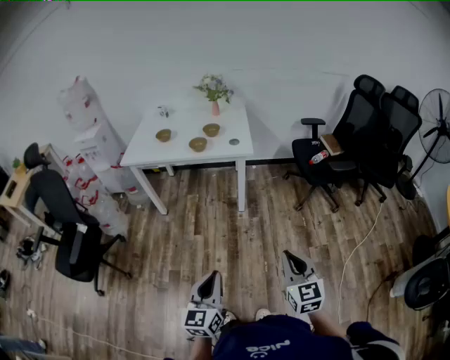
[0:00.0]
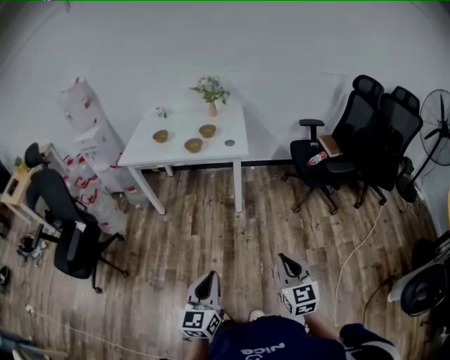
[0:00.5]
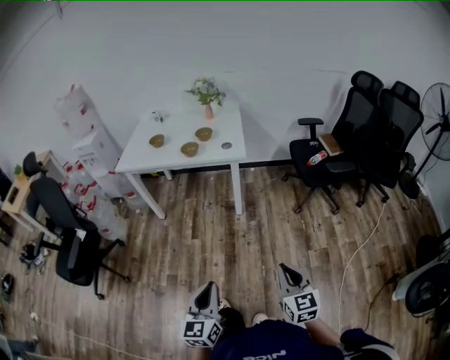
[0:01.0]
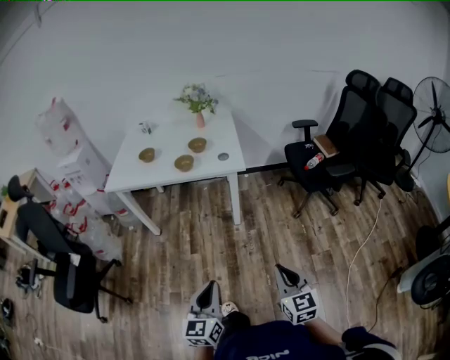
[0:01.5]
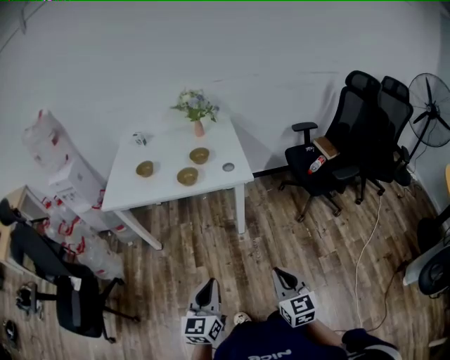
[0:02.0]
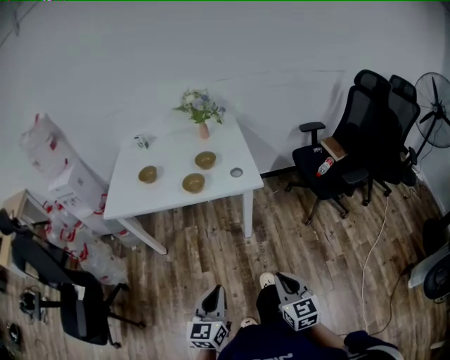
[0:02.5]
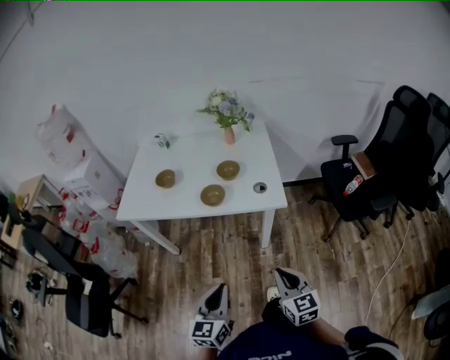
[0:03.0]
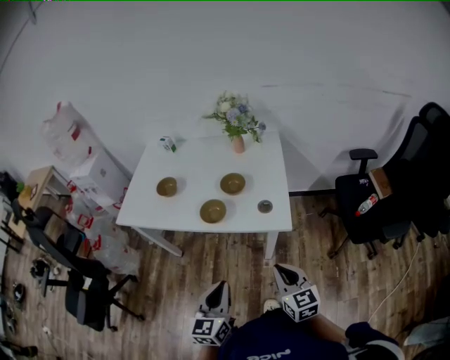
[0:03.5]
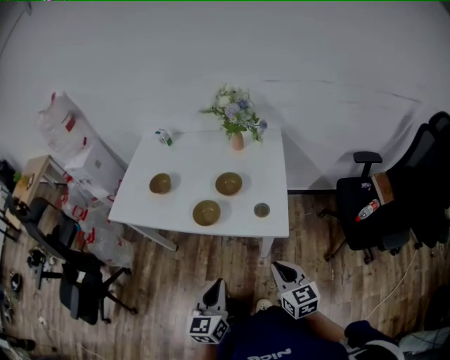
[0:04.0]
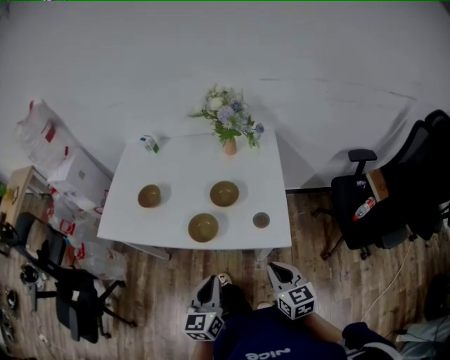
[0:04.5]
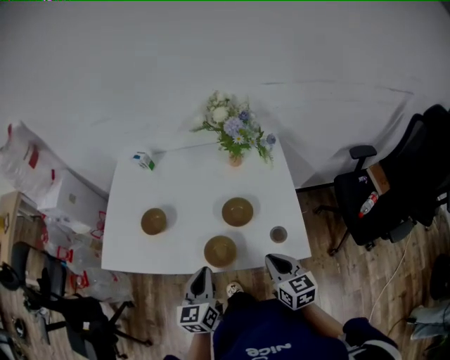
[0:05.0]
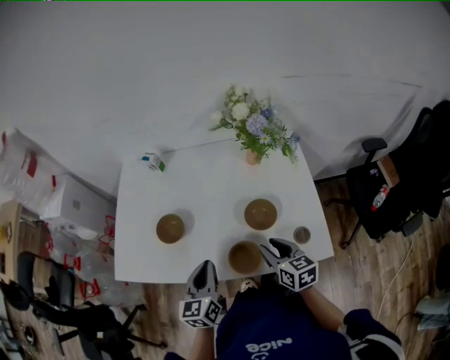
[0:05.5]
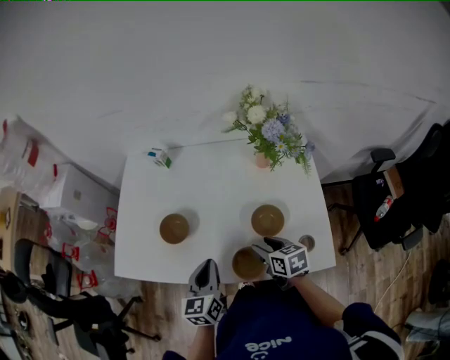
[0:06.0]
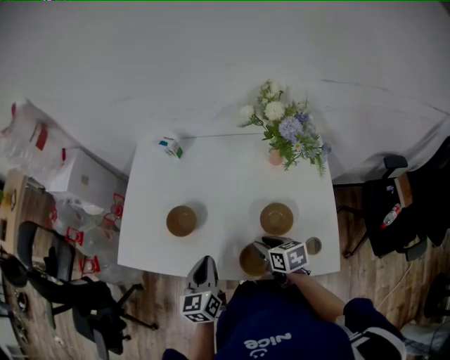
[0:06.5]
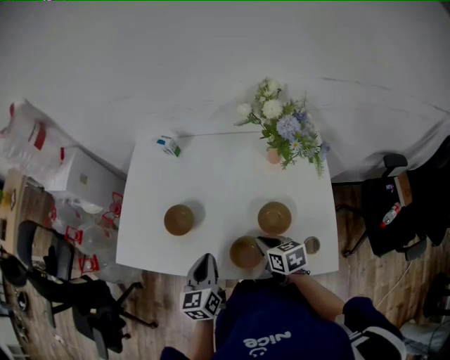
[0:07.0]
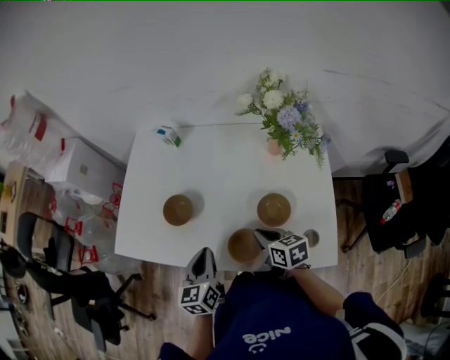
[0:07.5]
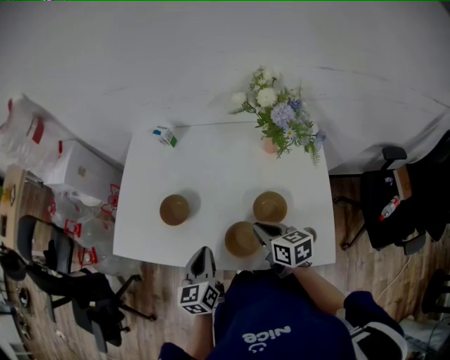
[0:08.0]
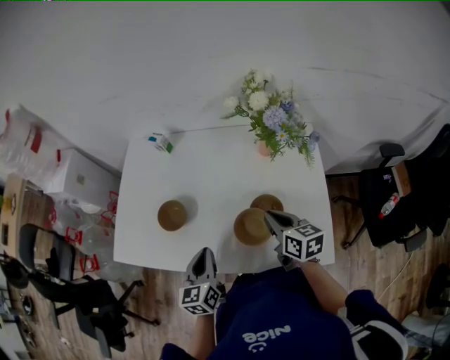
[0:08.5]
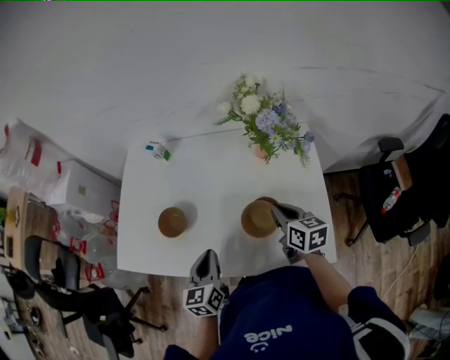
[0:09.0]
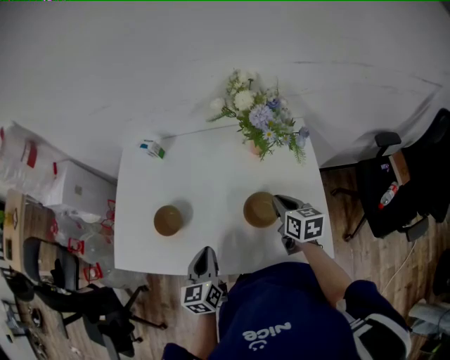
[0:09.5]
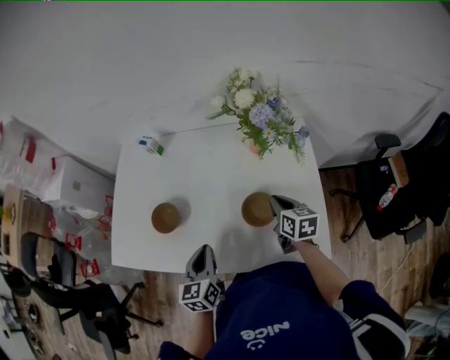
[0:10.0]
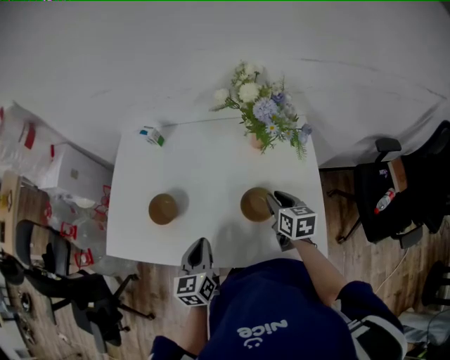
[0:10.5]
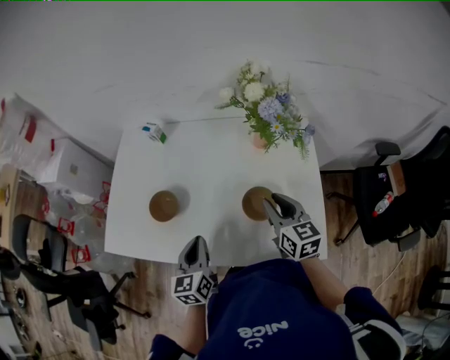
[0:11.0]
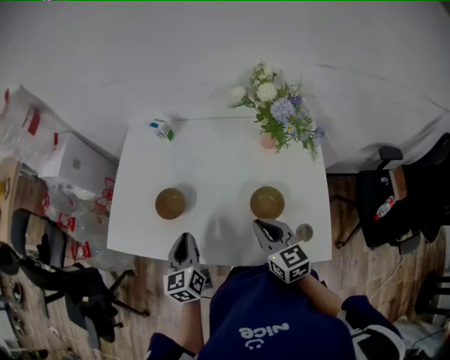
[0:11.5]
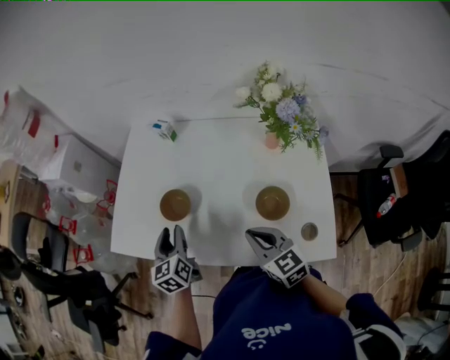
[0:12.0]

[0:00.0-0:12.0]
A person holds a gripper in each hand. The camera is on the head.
0:00.0 to 0:02.0: The left gripper travels forward by approximately 20 cm. The right gripper heads forward and to the left, covering roughly 20 cm.
0:02.0 to 0:04.0: The grippers both shift forward by roughly 30 cm. The right gripper changes its angle by approximately 20 degrees.
0:04.0 to 0:06.0: The grippers both shift forward and to the left by roughly 35 cm. The right gripper swivels approximately 30 degrees, and opens its fingers.
0:06.0 to 0:08.0: The right gripper closes up.
0:08.0 to 0:10.0: The right gripper is displaced to the right and forward by roughly 15 cm.
0:10.0 to 0:12.0: The left gripper is displaced to the left and forward by some 15 cm, and opens its fingers; the right gripper moves to the left and backward, approximately 20 cm, rotates roughly 40 degrees, and opens, then closes again.

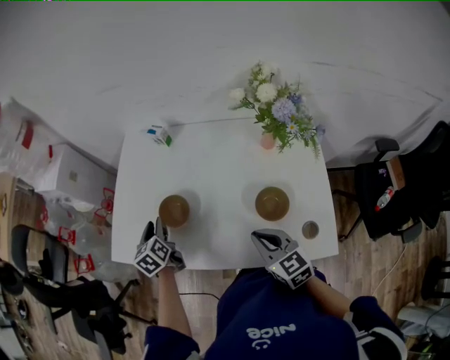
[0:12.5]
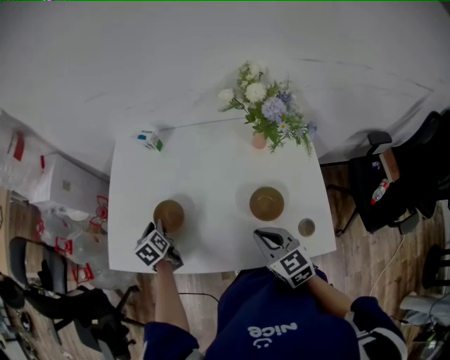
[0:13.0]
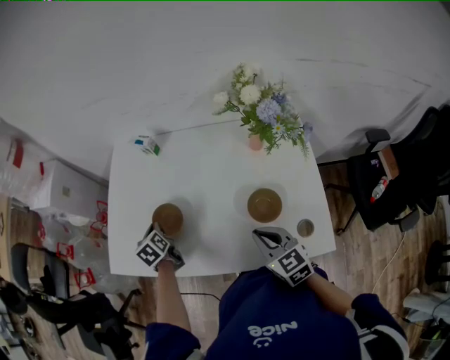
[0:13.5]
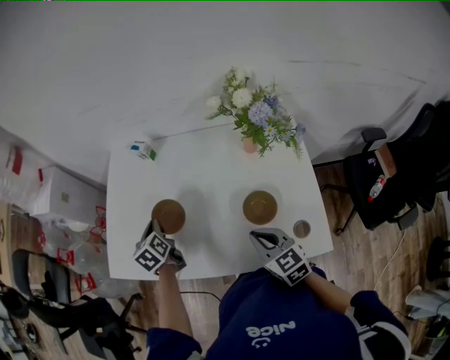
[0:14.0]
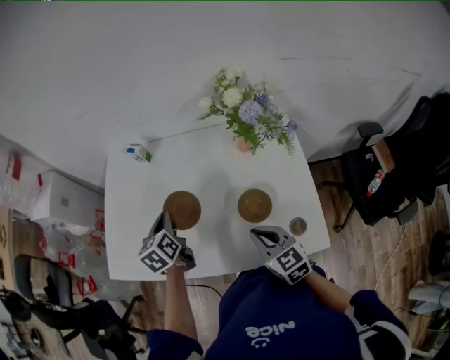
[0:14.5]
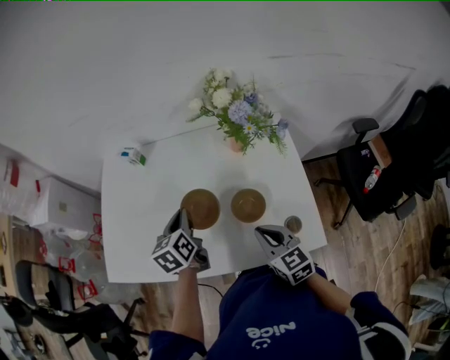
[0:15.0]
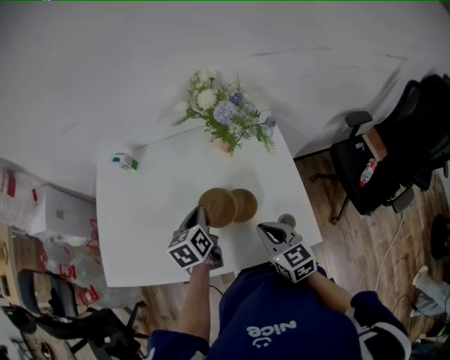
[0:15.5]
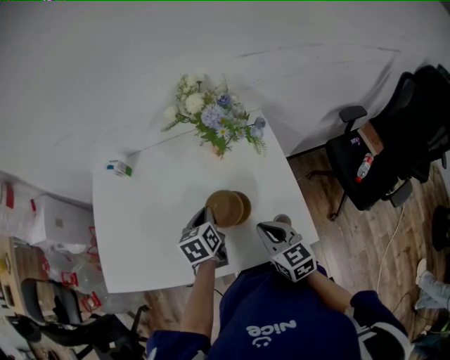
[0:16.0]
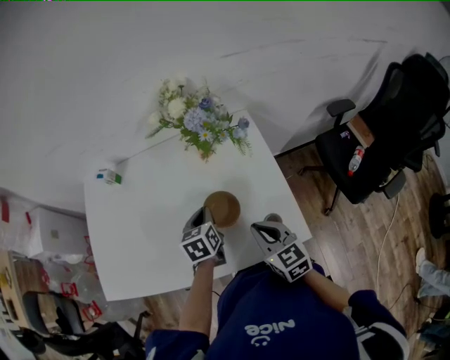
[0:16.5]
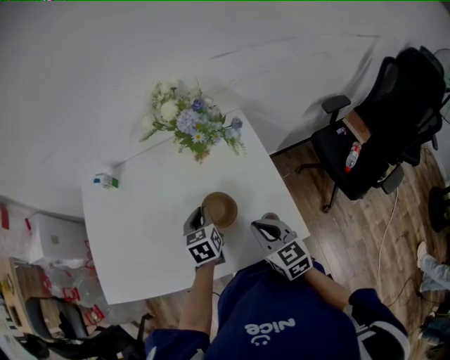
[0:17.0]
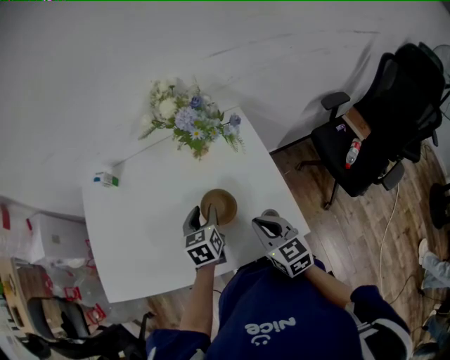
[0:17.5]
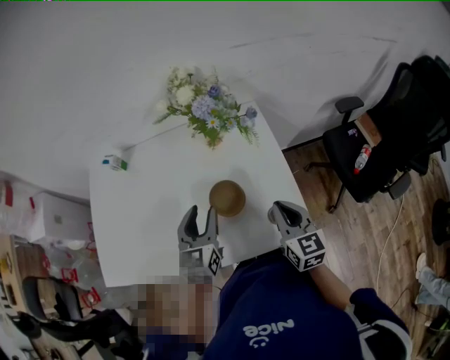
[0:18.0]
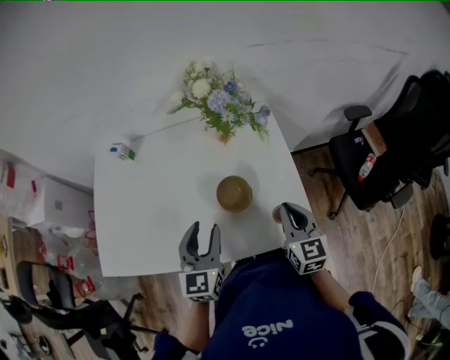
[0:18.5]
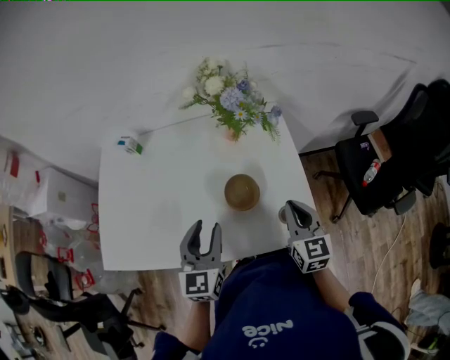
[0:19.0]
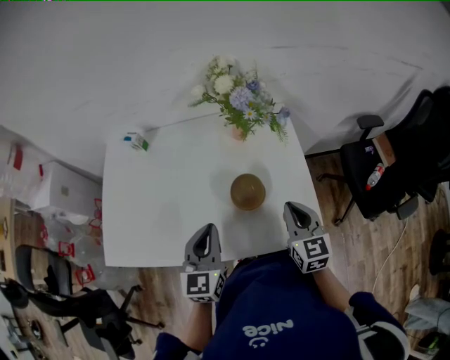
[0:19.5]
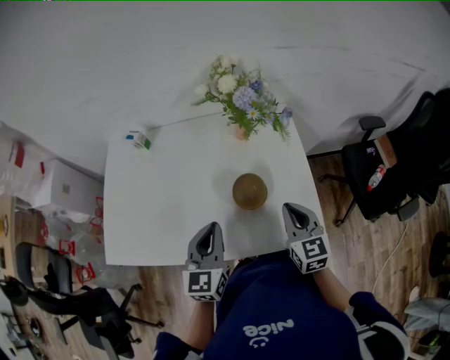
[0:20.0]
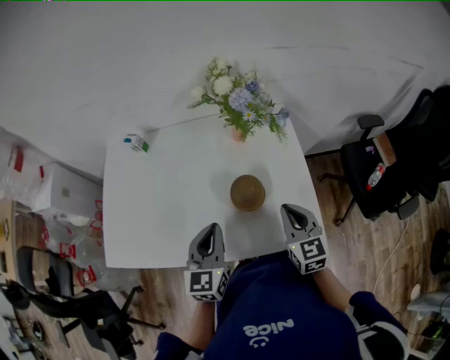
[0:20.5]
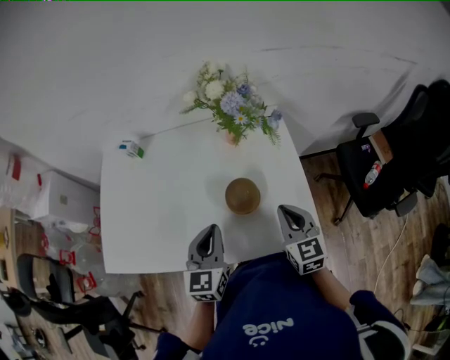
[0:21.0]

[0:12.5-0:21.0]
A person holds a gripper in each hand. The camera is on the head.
0:12.5 to 0:14.5: The left gripper goes some 15 cm to the right and upward, and closes up.
0:14.5 to 0:16.5: The right gripper heads to the right, covering some 10 cm; the left gripper heads to the right, covering roughly 25 cm, and swivels about 20 degrees.
0:16.5 to 0:19.0: The right gripper heads to the right, covering some 5 cm. The left gripper shifts about 15 cm backward, upward and to the left, changes its angle by roughly 30 degrees, and opens up.
0:19.0 to 0:21.0: The left gripper closes its fingers.

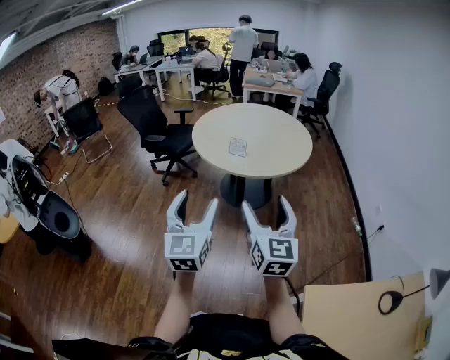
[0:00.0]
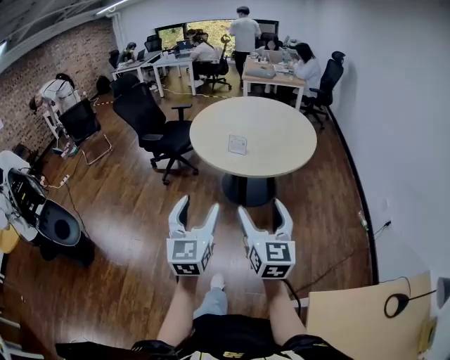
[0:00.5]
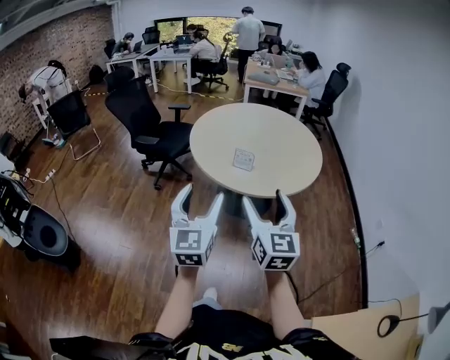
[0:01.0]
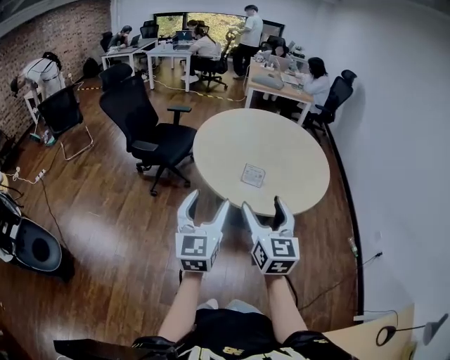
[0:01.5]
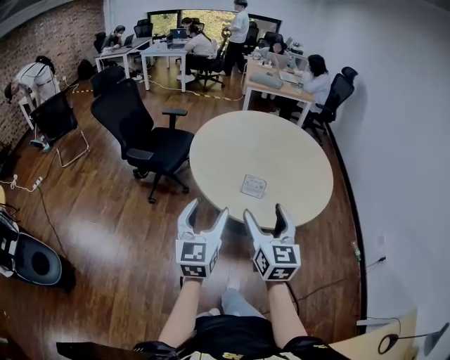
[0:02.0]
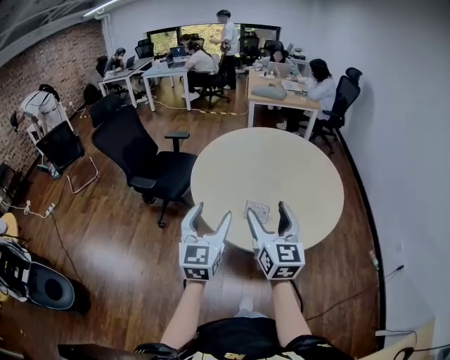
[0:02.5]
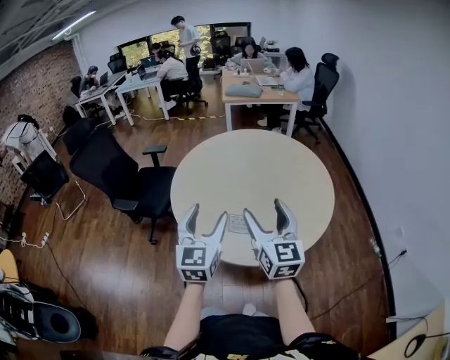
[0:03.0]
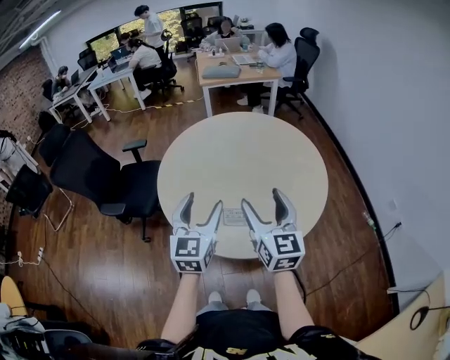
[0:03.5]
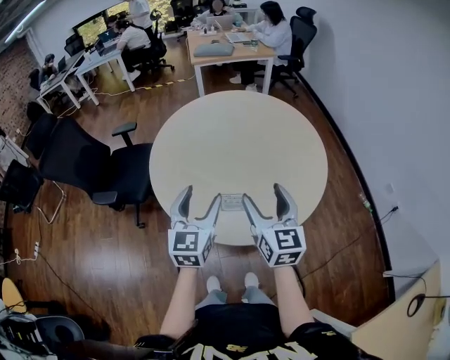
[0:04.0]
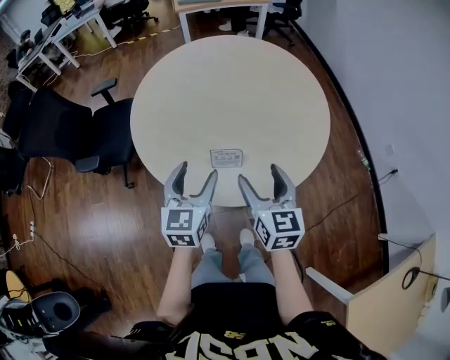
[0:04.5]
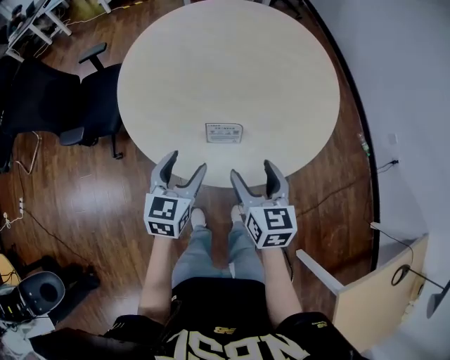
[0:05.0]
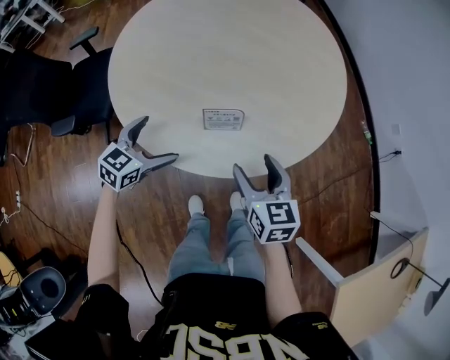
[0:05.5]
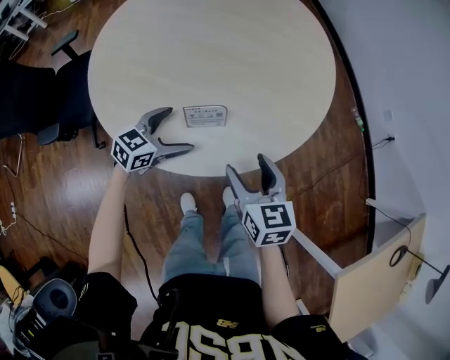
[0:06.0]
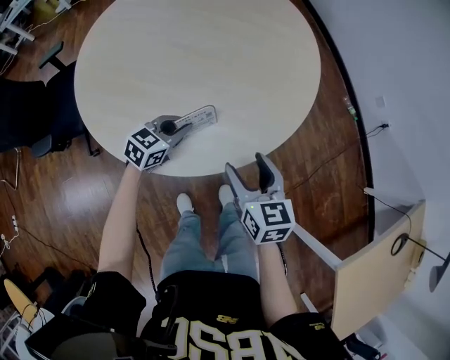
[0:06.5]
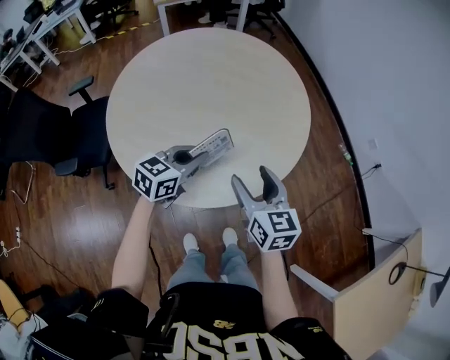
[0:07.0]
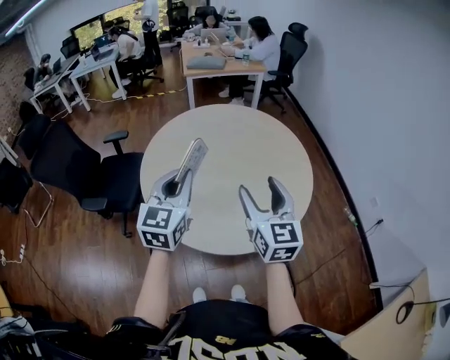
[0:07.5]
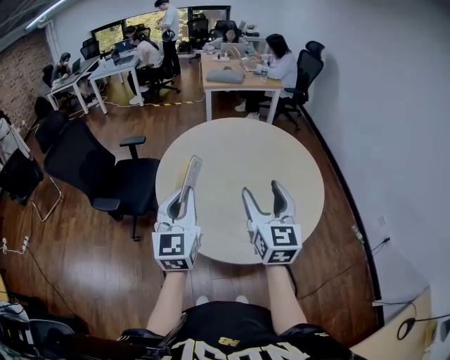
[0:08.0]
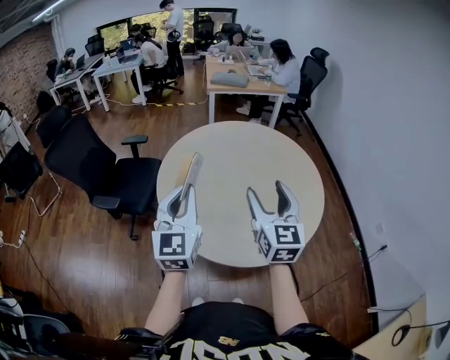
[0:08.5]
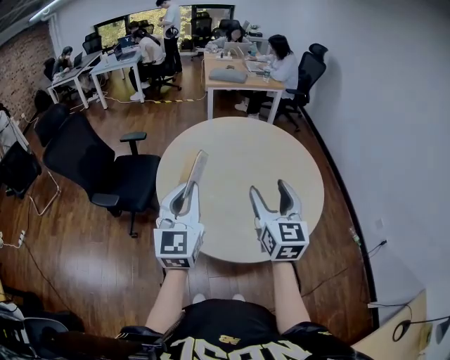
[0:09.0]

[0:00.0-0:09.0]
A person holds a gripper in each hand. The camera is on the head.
0:00.0 to 0:02.0: The pair of grippers is taken forward, approximately 40 cm.
0:02.0 to 0:04.5: The right gripper travels forward, downward and to the right by some 25 cm; the left gripper moves forward and downward, some 30 cm, and changes its angle by roughly 20 degrees.
0:04.5 to 0:07.0: The right gripper reaches some 15 cm downward, then returns, while the left gripper moves roughly 20 cm downward and comes back, swivels roughly 40 degrees, and closes up.
0:07.0 to 0:09.0: The two grippers go roughly 20 cm upward. The left gripper turns by approximately 60 degrees, while the right gripper swivels approximately 20 degrees.
